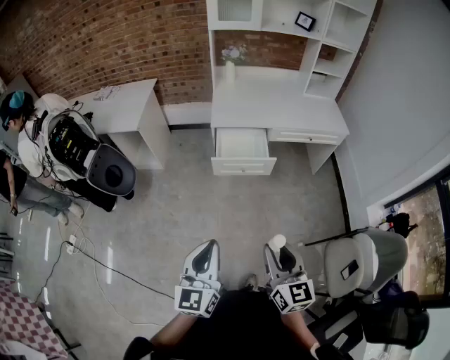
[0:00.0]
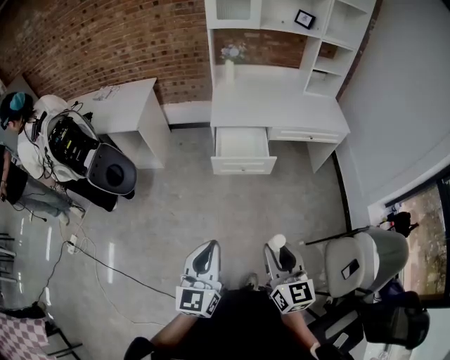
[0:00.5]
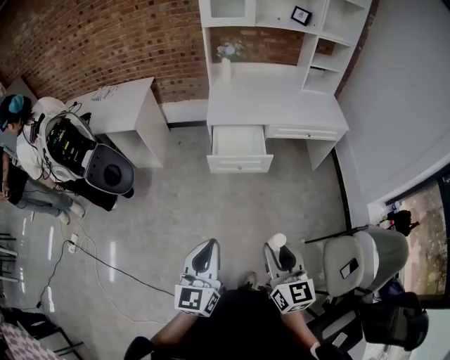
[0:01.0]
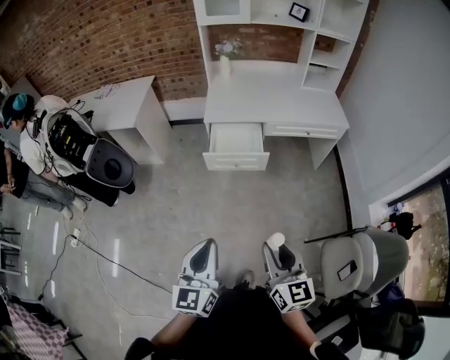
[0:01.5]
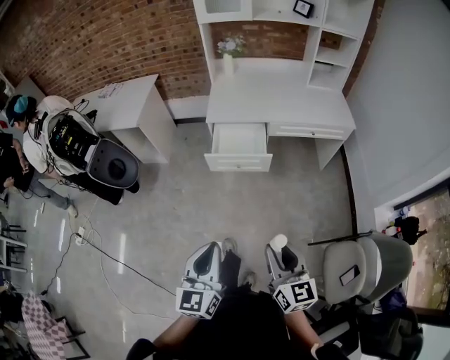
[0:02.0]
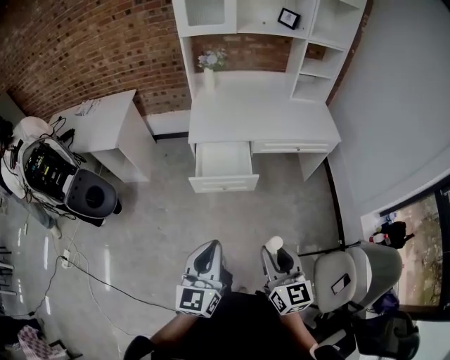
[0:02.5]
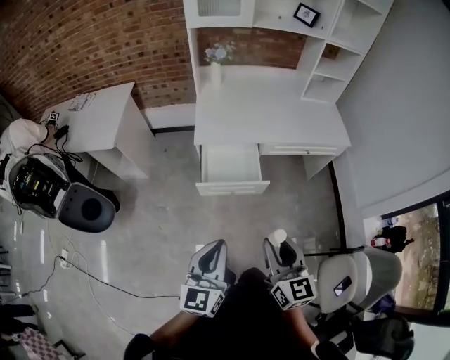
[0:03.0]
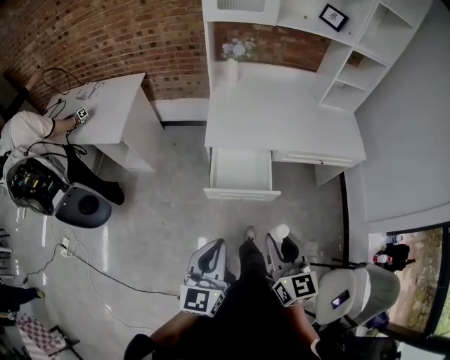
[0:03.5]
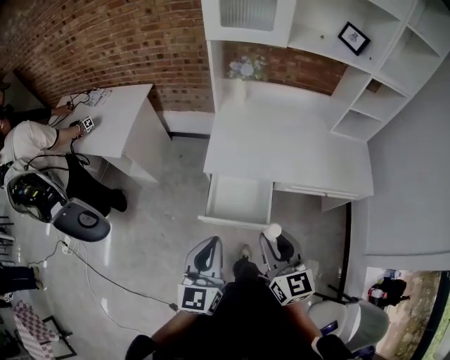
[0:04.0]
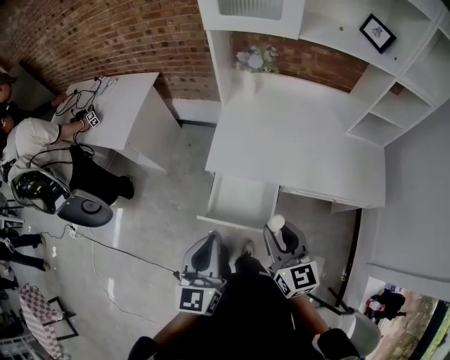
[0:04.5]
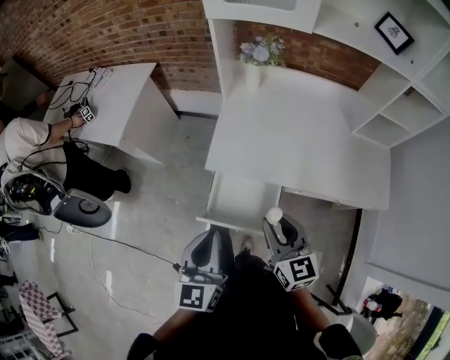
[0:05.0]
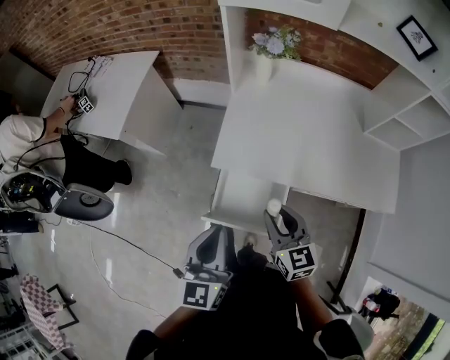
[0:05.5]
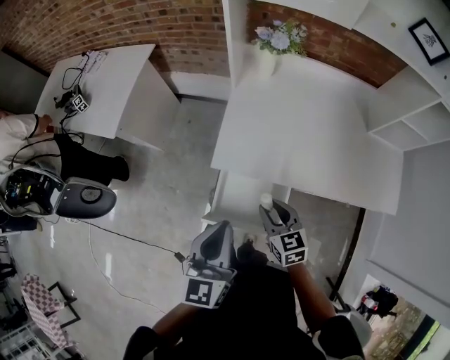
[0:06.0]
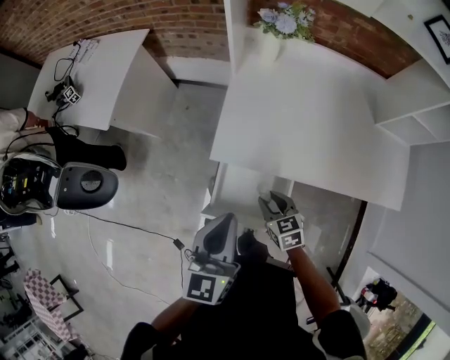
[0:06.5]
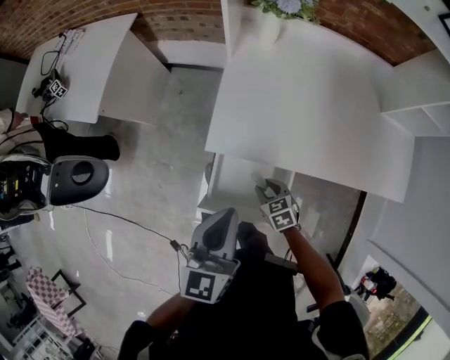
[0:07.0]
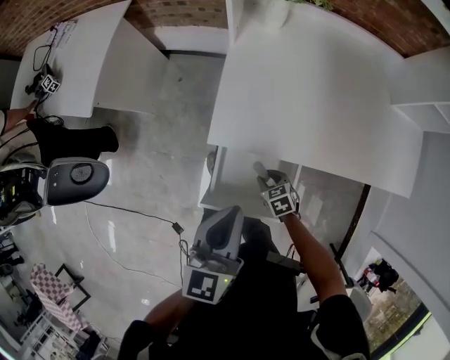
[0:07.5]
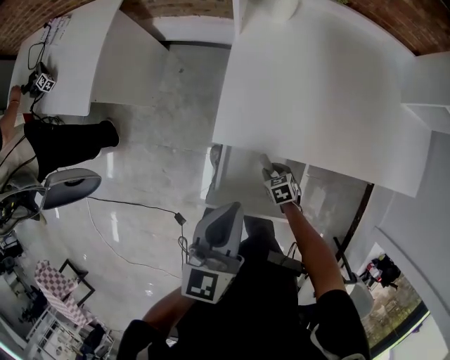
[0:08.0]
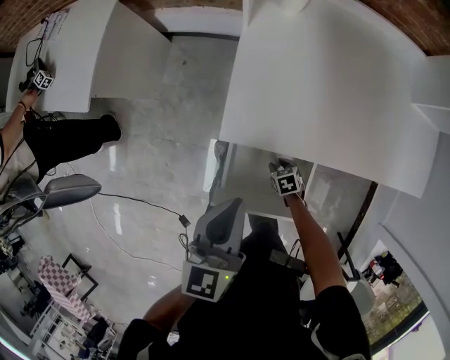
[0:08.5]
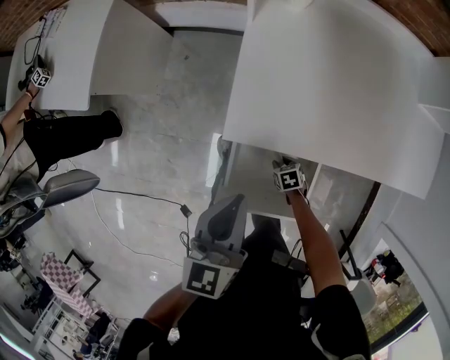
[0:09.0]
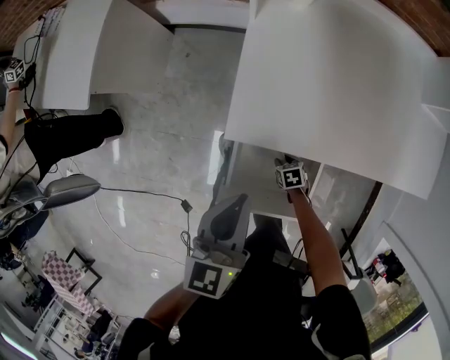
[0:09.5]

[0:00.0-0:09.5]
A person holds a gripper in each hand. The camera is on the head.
0:00.0 to 0:02.0: The grippers both shift to the right by some 10 cm.
0:02.0 to 0:04.0: Both grippers are carried forward, roughly 50 cm.
0:04.0 to 0:05.5: The left gripper moves forward, roughly 15 cm. Meanwhile the right gripper is displaced forward and downward by roughly 20 cm.
0:05.5 to 0:07.5: The left gripper travels downward and forward by roughly 15 cm; the right gripper shifts about 35 cm downward, and tips its fingers downward by some 40 degrees.
0:07.5 to 0:09.5: The right gripper travels downward by approximately 15 cm. The left gripper heads forward and downward, covering about 10 cm.

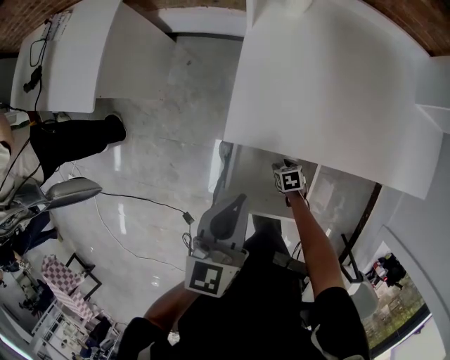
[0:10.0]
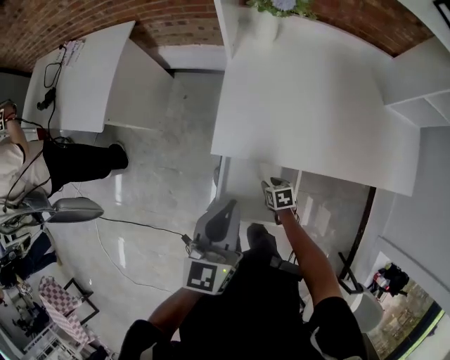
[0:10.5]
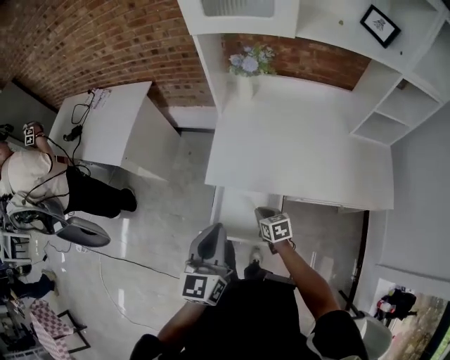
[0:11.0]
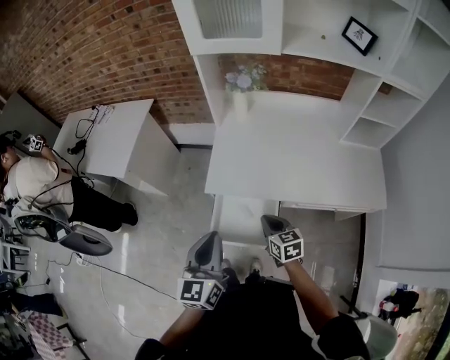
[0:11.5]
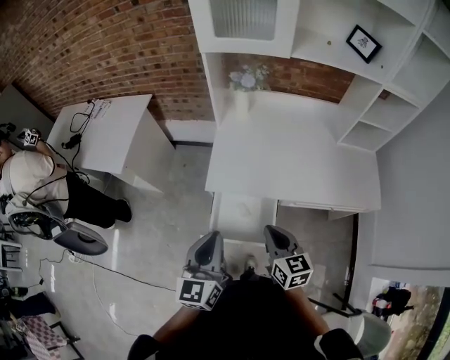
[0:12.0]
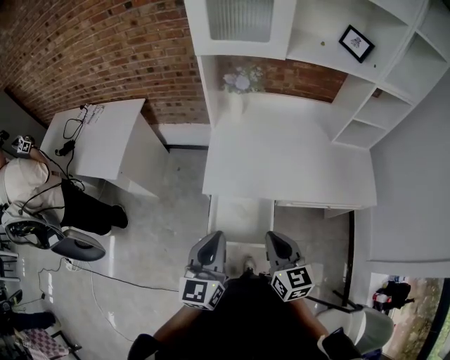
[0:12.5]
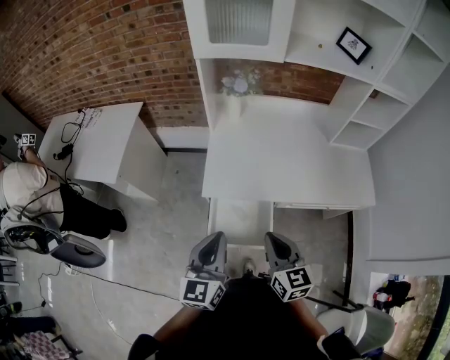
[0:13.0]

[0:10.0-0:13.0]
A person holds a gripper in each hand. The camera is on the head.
0:10.0 to 0:11.5: The right gripper heads upward, covering about 40 cm, angles its fingers upward, by about 40 degrees, and closes up. Meanwhile the left gripper travels backward and upward by roughly 25 cm.
0:11.5 to 0:13.0: The right gripper shifts roughly 15 cm upward.

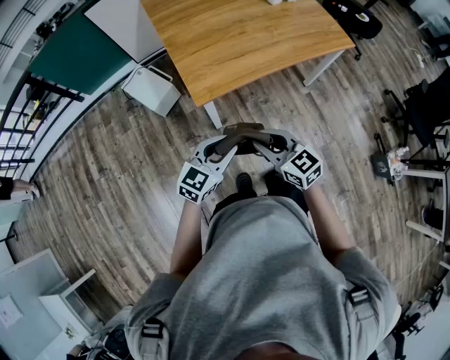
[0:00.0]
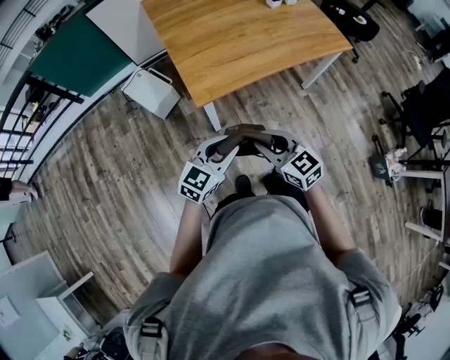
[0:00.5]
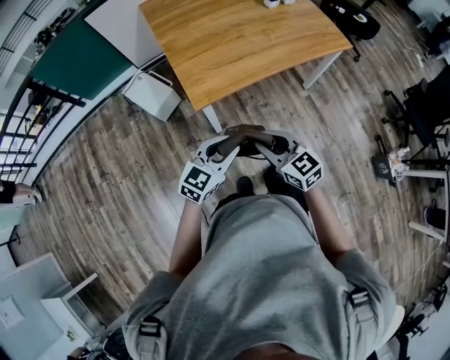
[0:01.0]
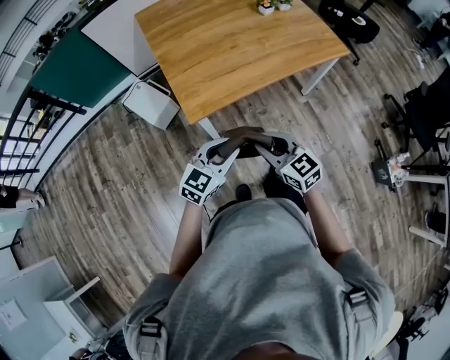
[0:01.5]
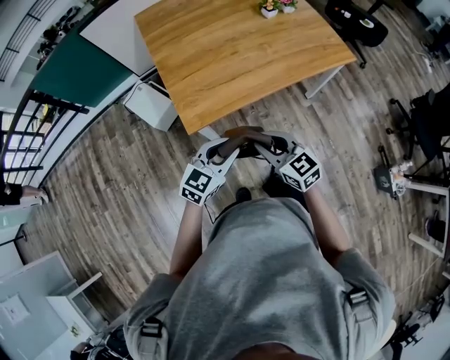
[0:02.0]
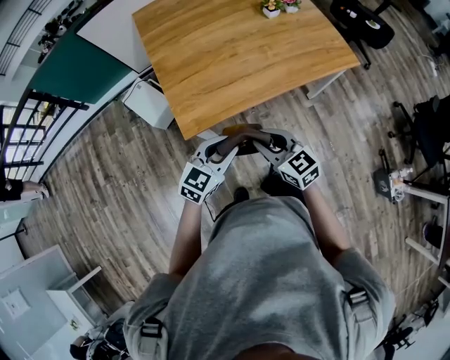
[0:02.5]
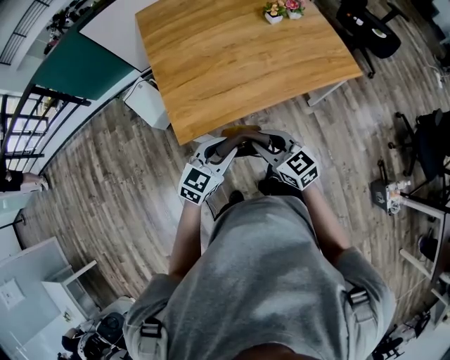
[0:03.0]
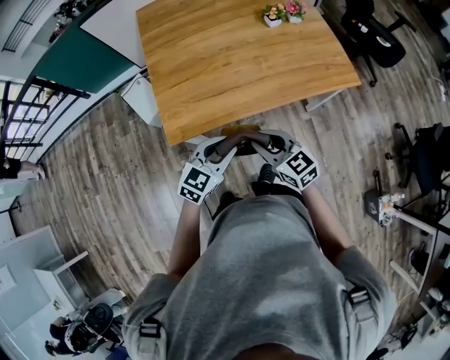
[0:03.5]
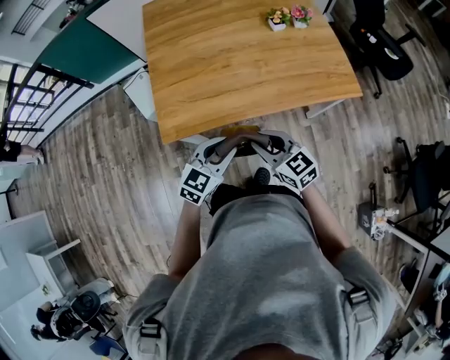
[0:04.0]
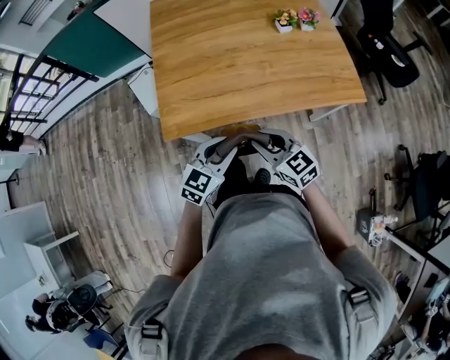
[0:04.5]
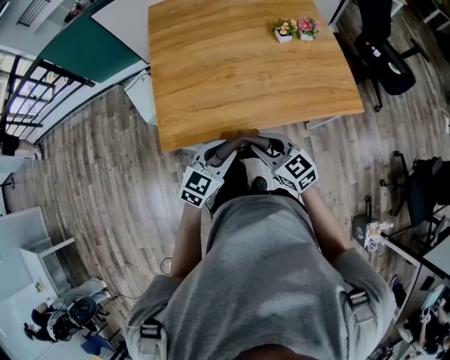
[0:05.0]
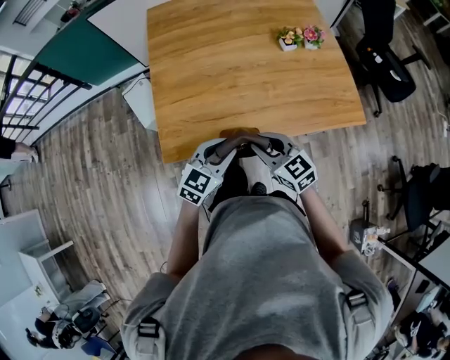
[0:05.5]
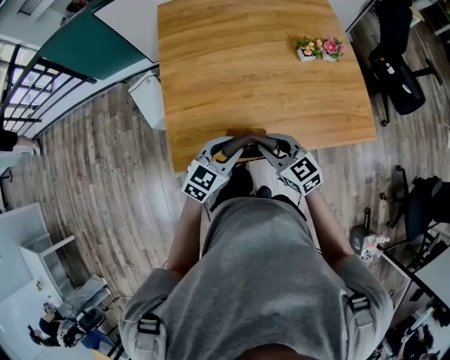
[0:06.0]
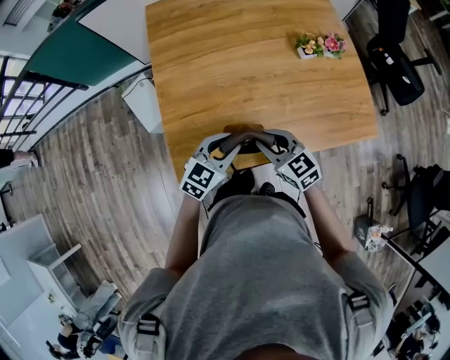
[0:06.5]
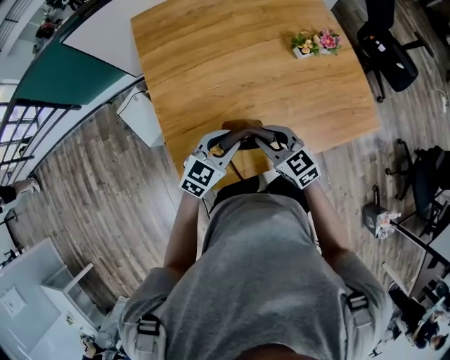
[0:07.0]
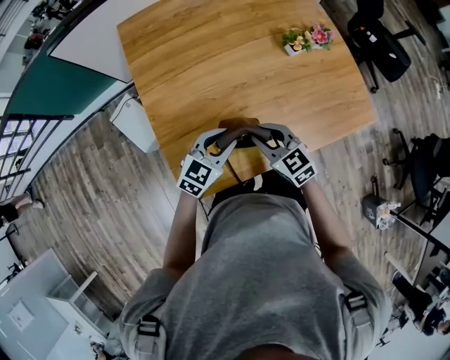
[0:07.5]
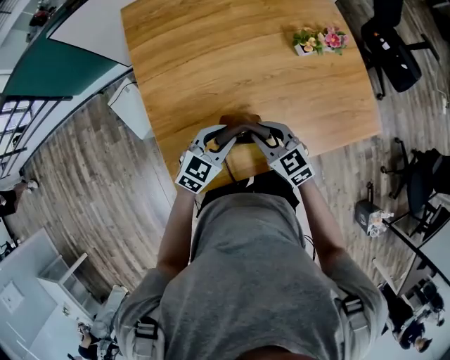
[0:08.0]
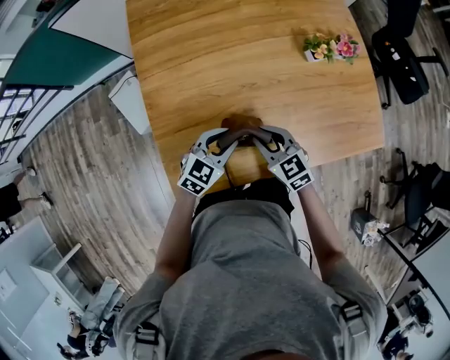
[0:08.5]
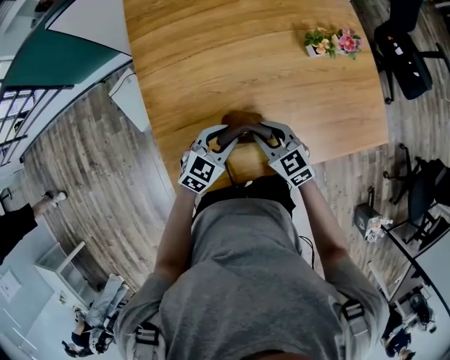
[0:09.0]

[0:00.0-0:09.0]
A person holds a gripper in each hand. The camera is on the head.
0:00.0 to 0:02.0: The grippers both shift forward and to the right by about 15 cm.
0:02.0 to 0:04.5: The two grippers go roughly 20 cm to the right and forward.
0:04.5 to 0:07.0: The grippers both shift forward by roughly 30 cm.
0:07.0 to 0:09.0: The left gripper moves downward, roughly 10 cm. Meanwhile the right gripper heads downward and forward, covering about 10 cm.

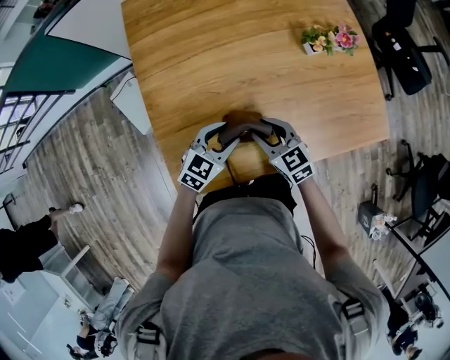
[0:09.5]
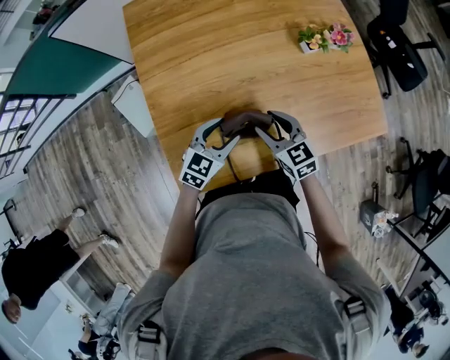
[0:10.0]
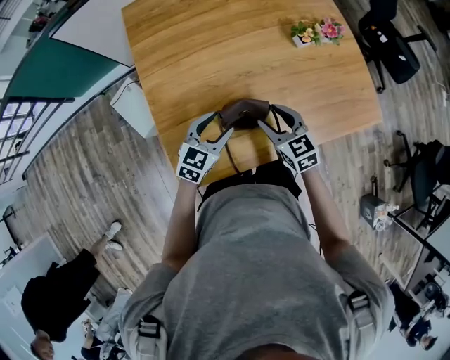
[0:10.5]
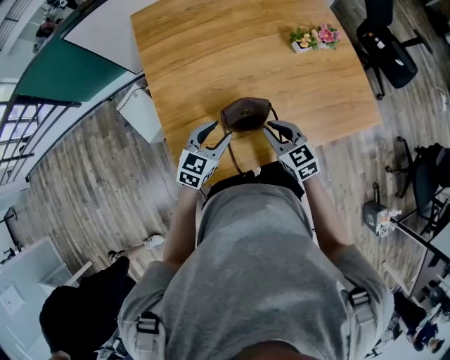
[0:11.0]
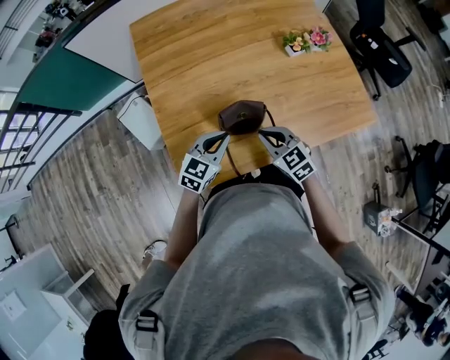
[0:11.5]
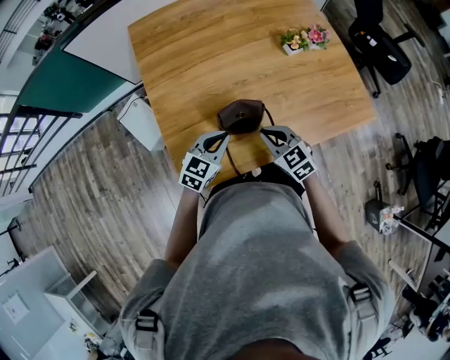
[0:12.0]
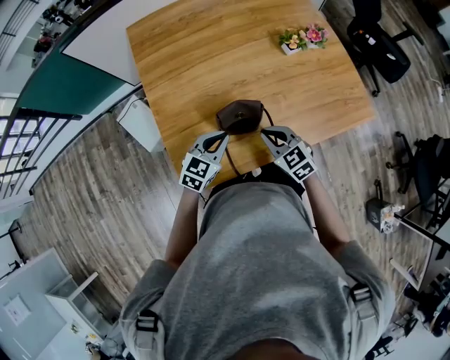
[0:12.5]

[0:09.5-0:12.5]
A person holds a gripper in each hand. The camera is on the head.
0:09.5 to 0:11.0: The left gripper ends up approximately 10 cm from where it was. The right gripper goes about 5 cm backward, and closes.
0:11.0 to 0:12.5: The left gripper closes its fingers.

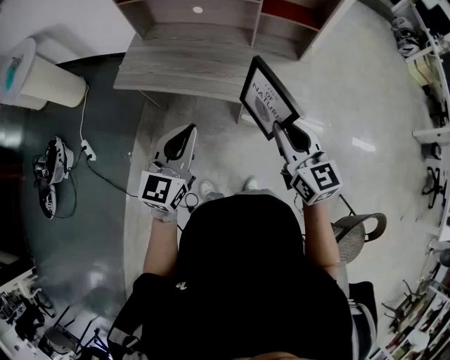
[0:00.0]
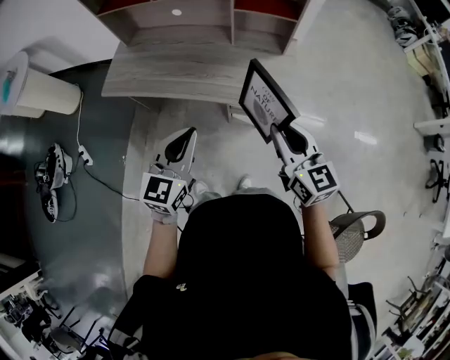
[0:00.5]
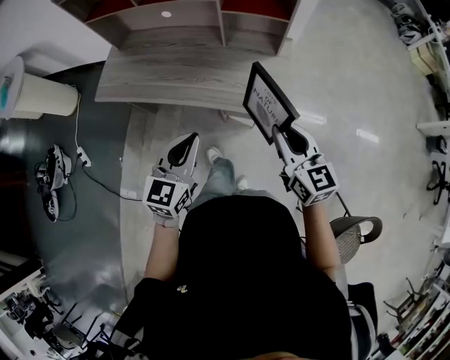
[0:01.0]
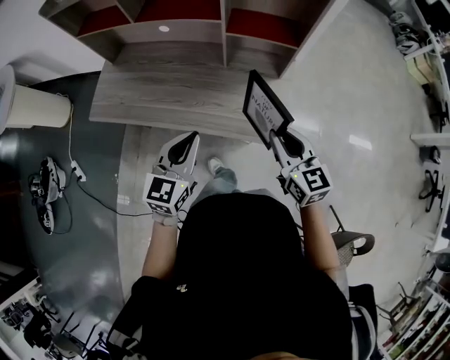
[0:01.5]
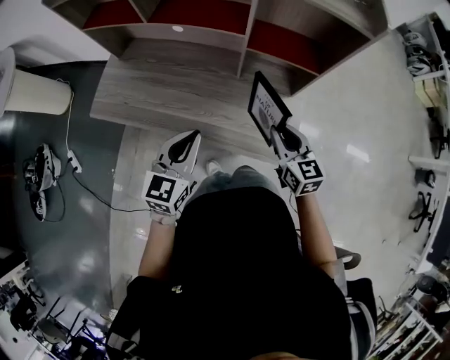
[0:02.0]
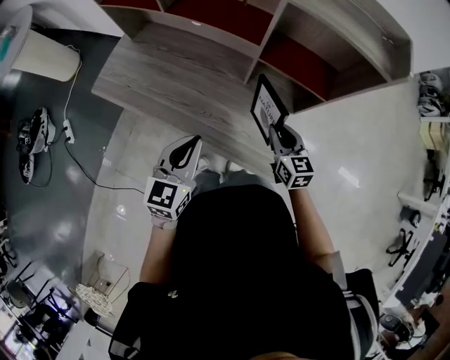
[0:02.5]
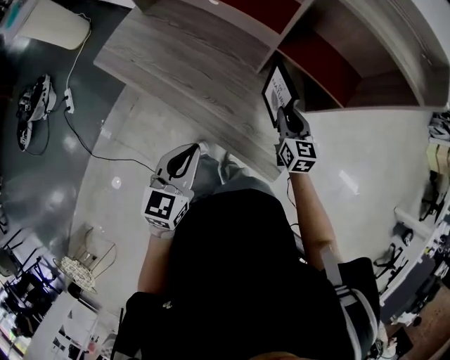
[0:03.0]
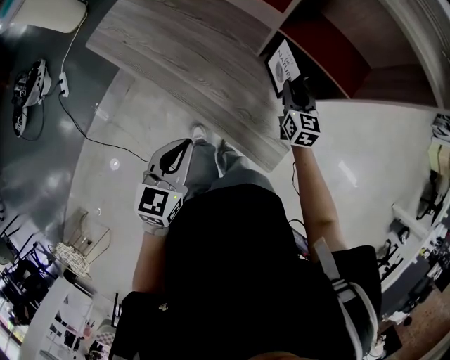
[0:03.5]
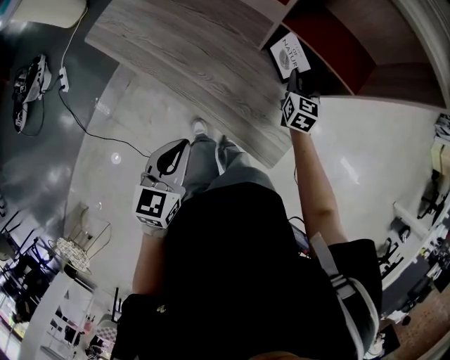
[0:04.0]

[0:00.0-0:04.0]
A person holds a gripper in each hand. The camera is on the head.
0:00.0 to 0:02.0: The left gripper goes about 25 cm forward and to the right. Meanwhile the right gripper moves forward, downward and to the right, roughly 30 cm.
0:02.0 to 0:04.0: The right gripper goes about 30 cm forward and downward. Meanwhile the left gripper goes roughly 10 cm downward and backward, and rotates about 30 degrees.
